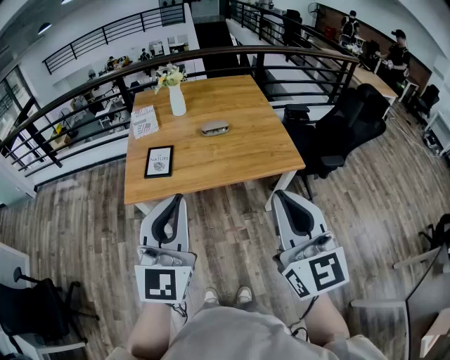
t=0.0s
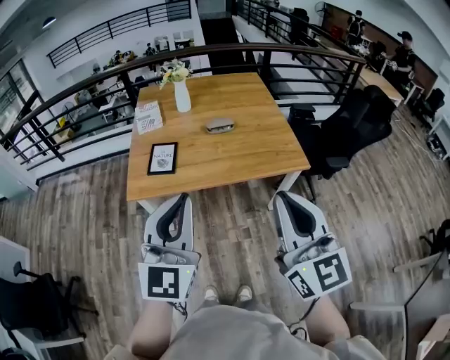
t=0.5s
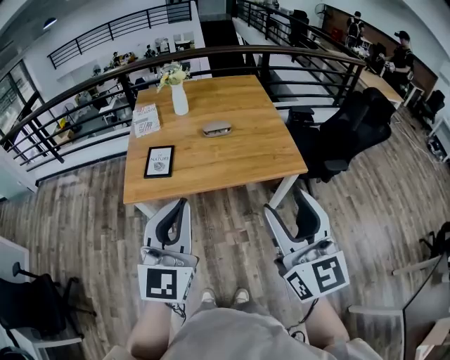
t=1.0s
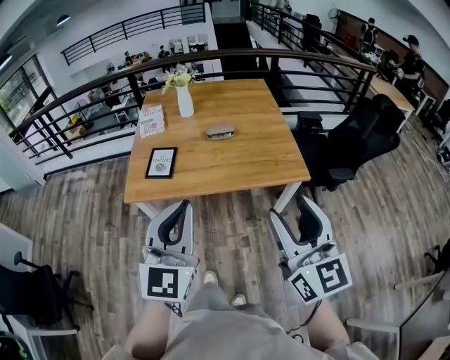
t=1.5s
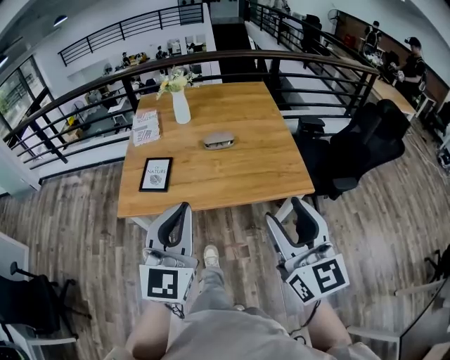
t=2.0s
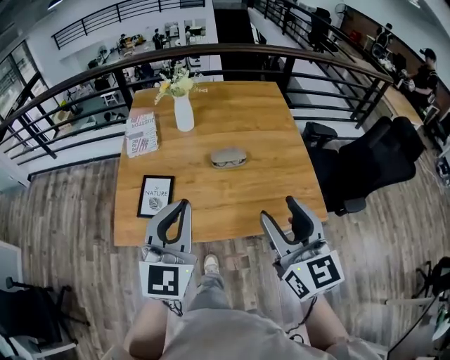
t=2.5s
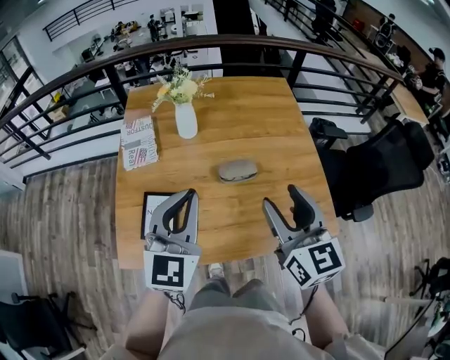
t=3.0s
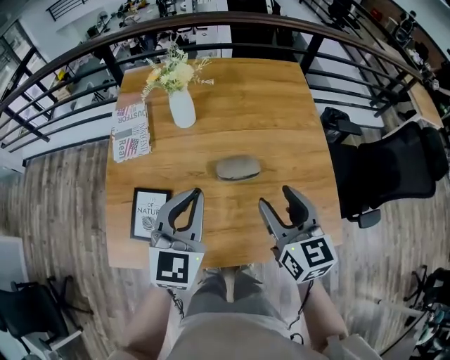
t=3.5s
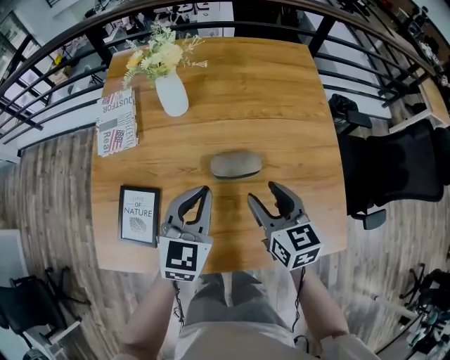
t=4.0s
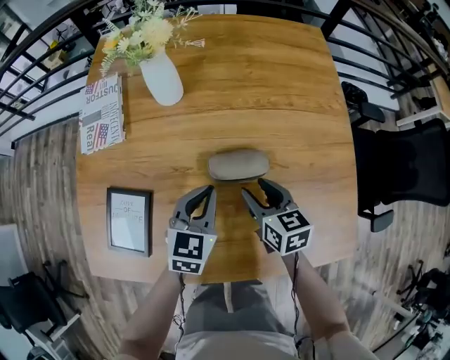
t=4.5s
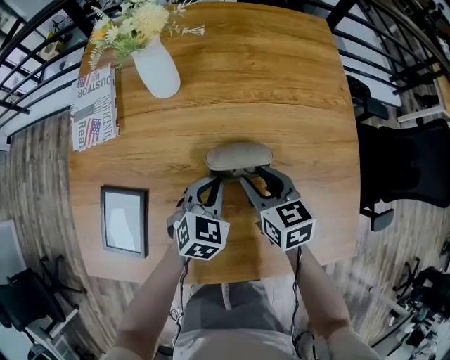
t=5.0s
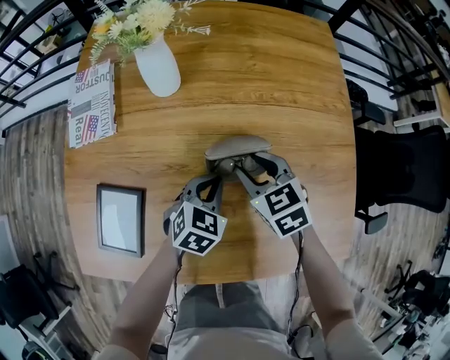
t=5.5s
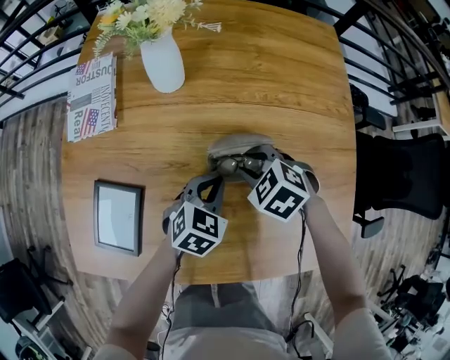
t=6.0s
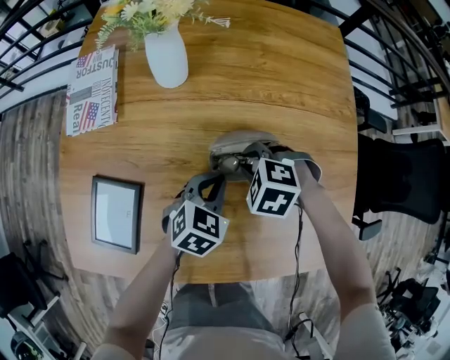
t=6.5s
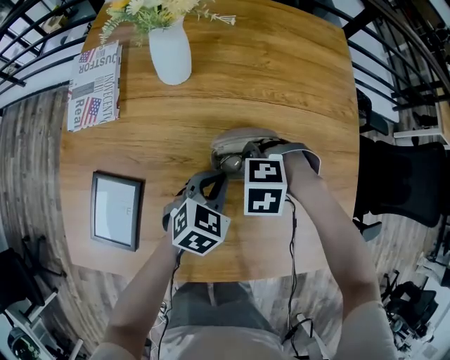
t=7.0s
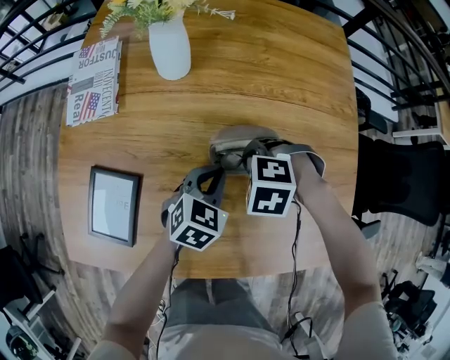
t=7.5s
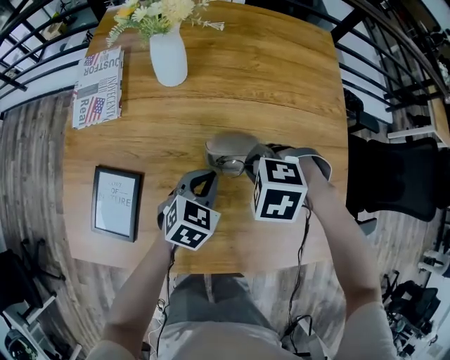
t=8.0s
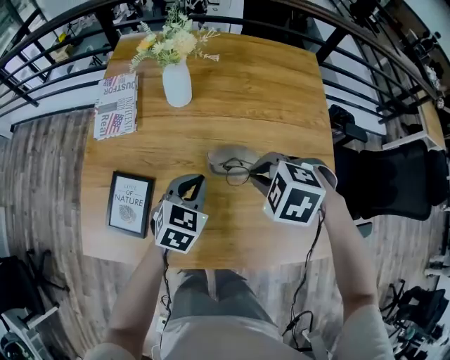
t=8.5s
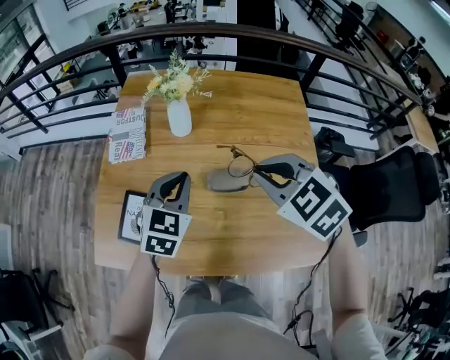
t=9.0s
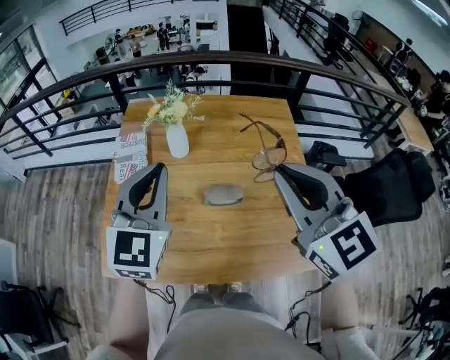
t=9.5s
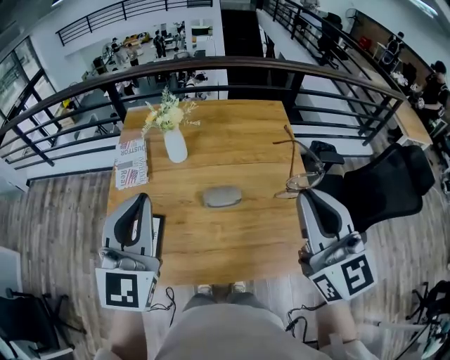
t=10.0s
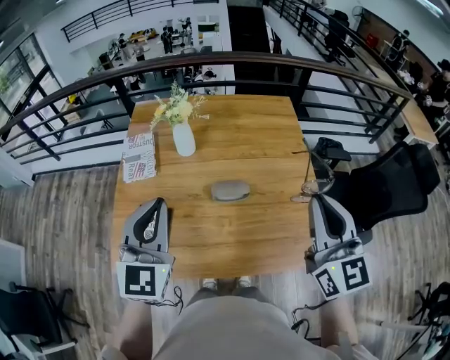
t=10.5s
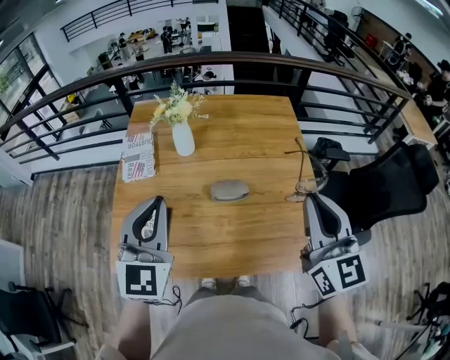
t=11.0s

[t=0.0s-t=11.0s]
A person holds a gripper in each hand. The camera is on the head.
t=0.0s to t=2.0s: The left gripper moves forward, downward and to the right, about 15 cm. The right gripper goes approximately 15 cm forward, to the right and downward, and opens its fingers.
t=2.0s to t=3.5s: The pair of grippers is taken forward, approximately 50 cm. The right gripper changes its angle by roughly 20 degrees.
t=3.5s to t=5.5s: The left gripper goes approximately 30 cm downward, and points its fingers roughly 30 degrees further downward; the right gripper is displaced downward and forward by roughly 30 cm, and turns by some 40 degrees.
t=5.5s to t=7.5s: The right gripper ends up roughly 5 cm from where it was, rotates around the line of its fingers by roughly 50 degrees, counterclockwise from behind, and closes up.
t=7.5s to t=9.0s: The grippers both shift upward by about 30 cm. The right gripper angles its fingers upward, by approximately 40 degrees; the left gripper changes its angle by approximately 20 degrees.
t=9.0s to t=11.0s: The right gripper shifts roughly 20 cm upward, backward and to the right, and tilts its fingers roughly 40 degrees upward; the left gripper travels upward and backward by approximately 20 cm, and swivels roughly 20 degrees.

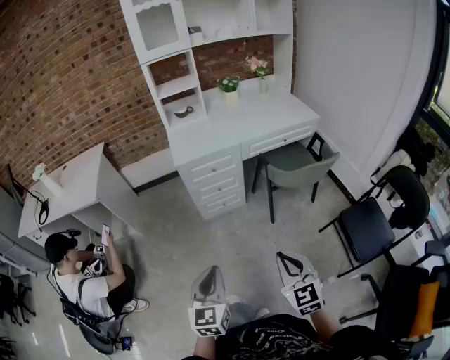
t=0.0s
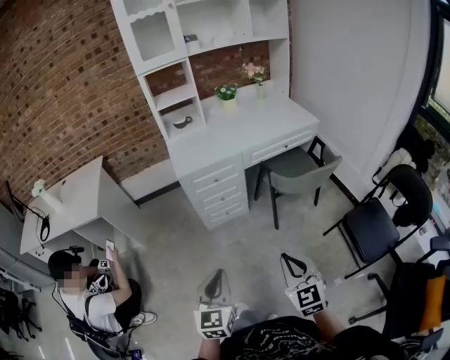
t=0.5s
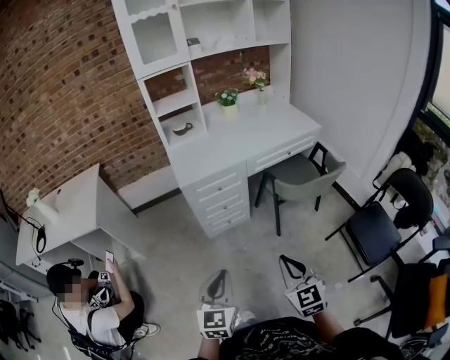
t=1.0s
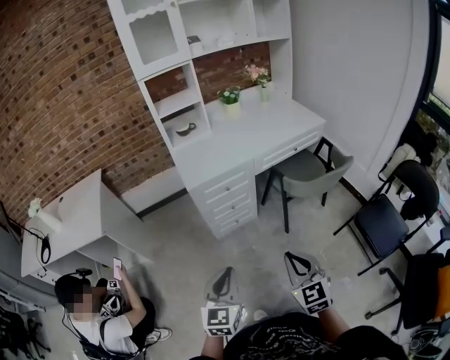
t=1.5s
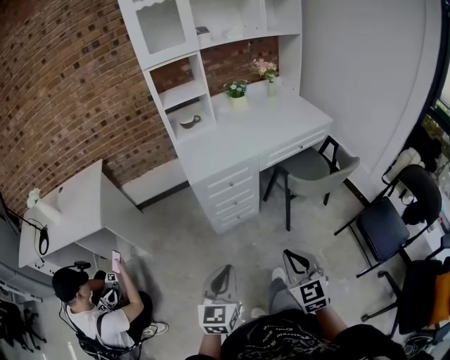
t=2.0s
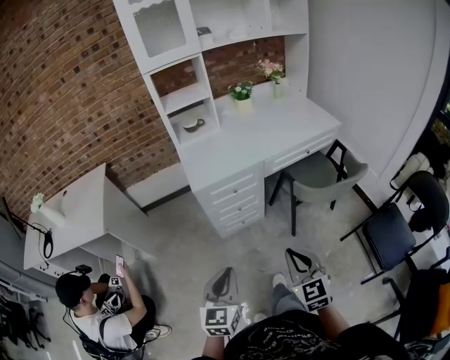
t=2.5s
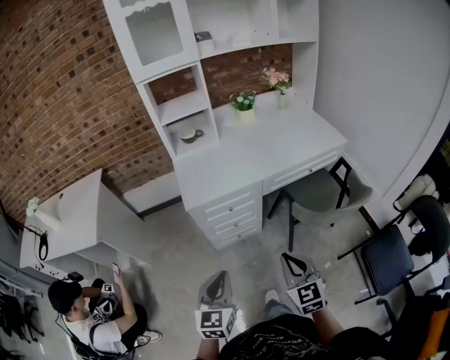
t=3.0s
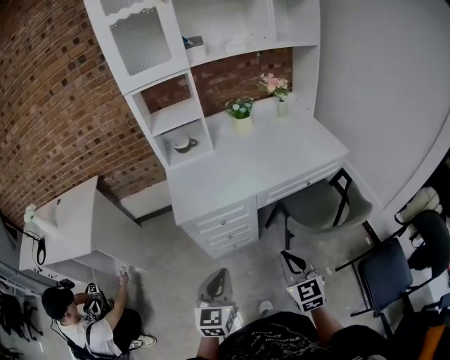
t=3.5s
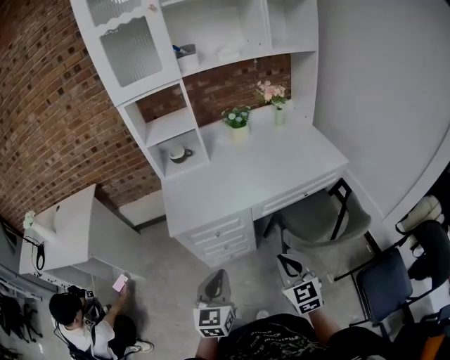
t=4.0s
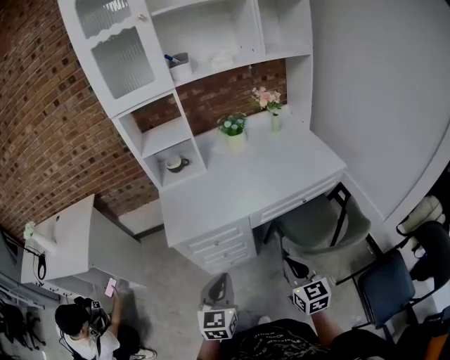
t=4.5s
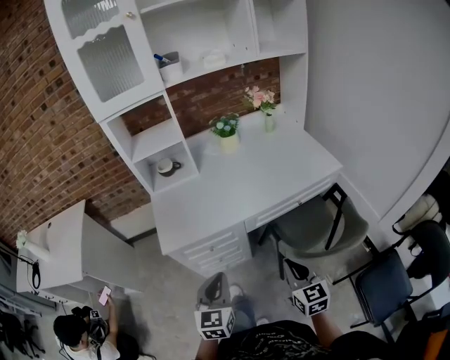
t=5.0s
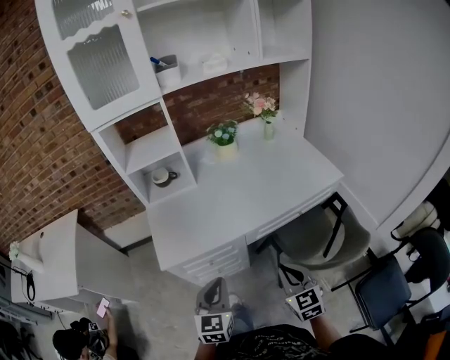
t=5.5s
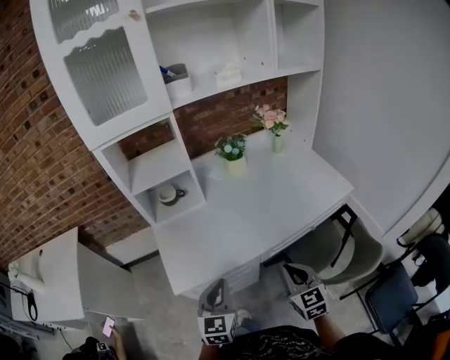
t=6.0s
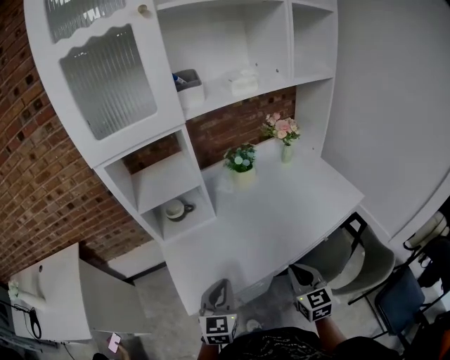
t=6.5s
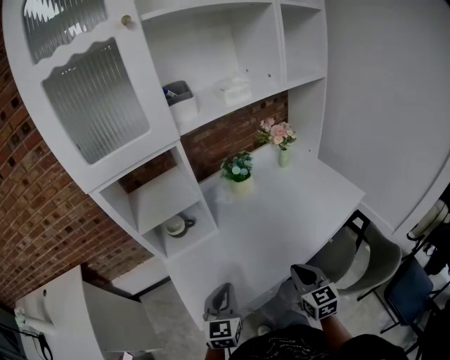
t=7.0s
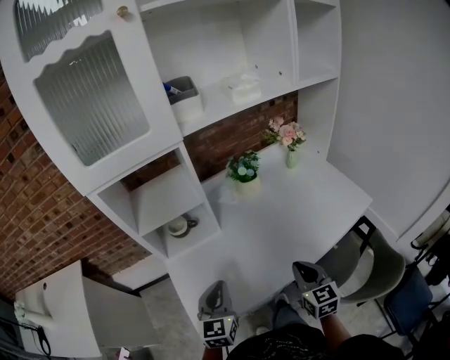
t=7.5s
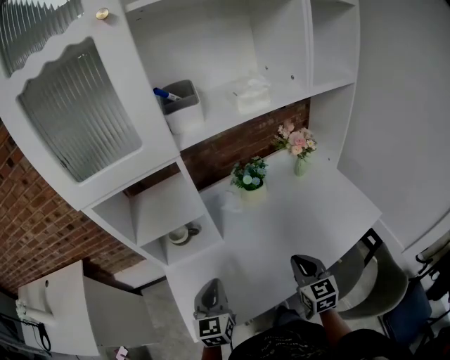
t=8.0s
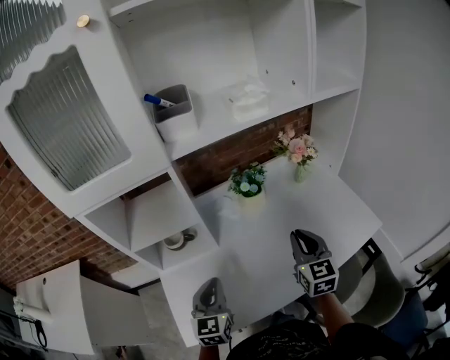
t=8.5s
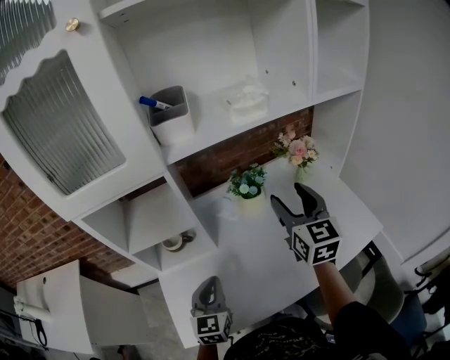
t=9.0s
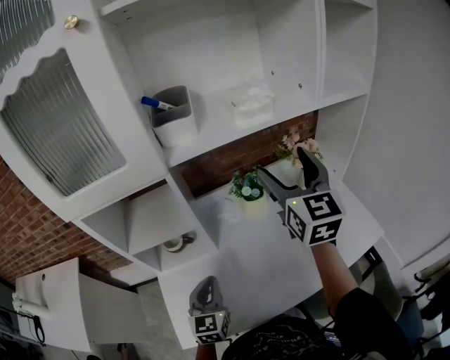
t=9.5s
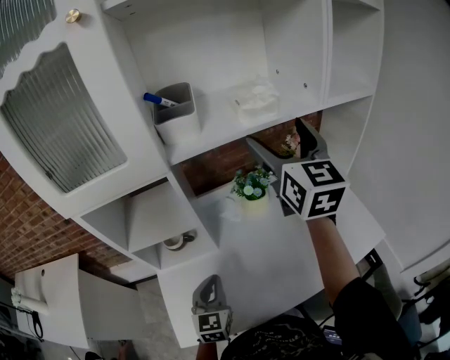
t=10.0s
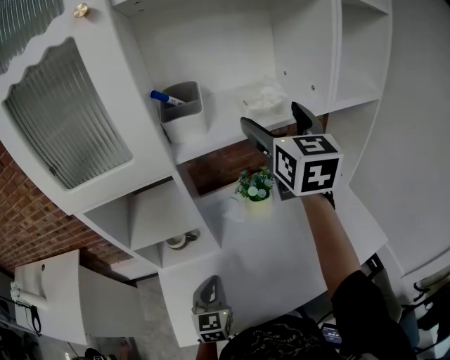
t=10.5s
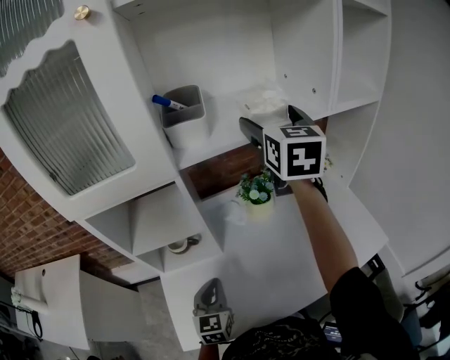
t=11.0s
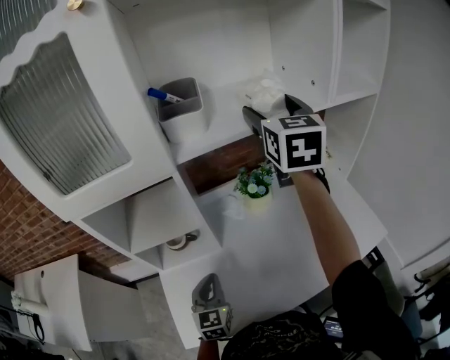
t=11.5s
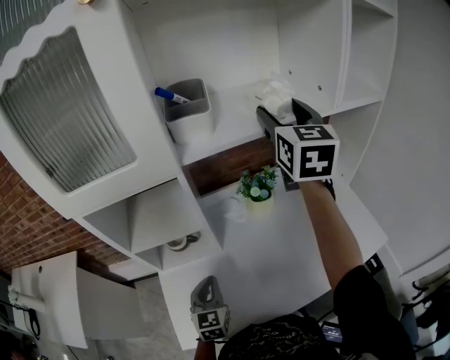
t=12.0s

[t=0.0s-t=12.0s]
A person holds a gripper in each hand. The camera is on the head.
t=0.0s to t=2.0s: Both grippers move forward and to the left, roughly 15 cm.
t=2.0s to t=4.0s: Both grippers move forward and to the right, some 30 cm.
t=4.0s to t=6.0s: The grippers both shift forward by roughly 20 cm.
t=6.0s to t=8.0s: Both grippers move forward, approximately 20 cm.
t=8.0s to t=10.0s: The left gripper travels forward by roughly 5 cm. The right gripper moves upward and forward, roughly 40 cm, changes its angle by some 30 degrees, and opens.
t=10.0s to t=12.0s: The right gripper shifts roughly 5 cm forward, while the left gripper moves about 5 cm.

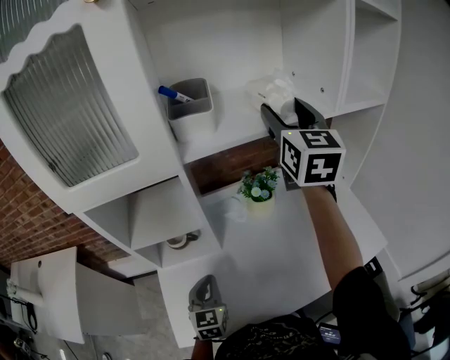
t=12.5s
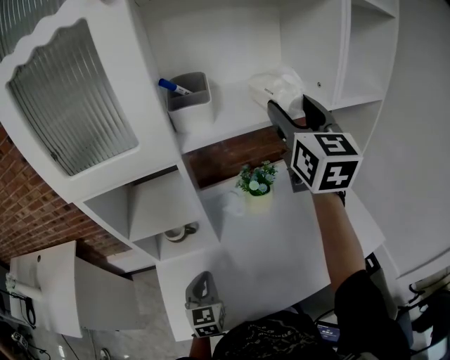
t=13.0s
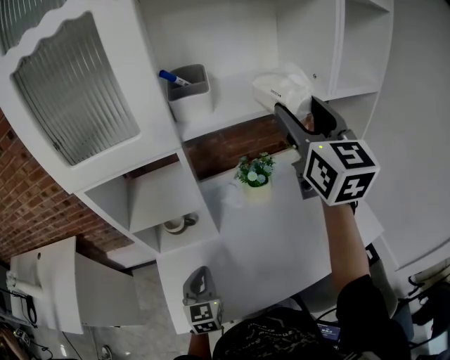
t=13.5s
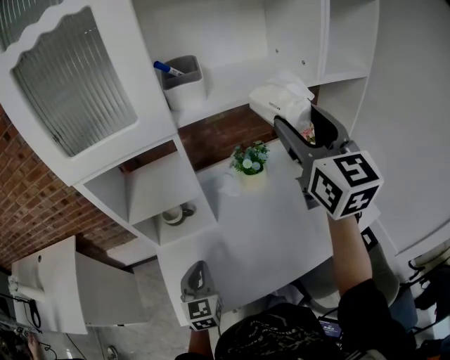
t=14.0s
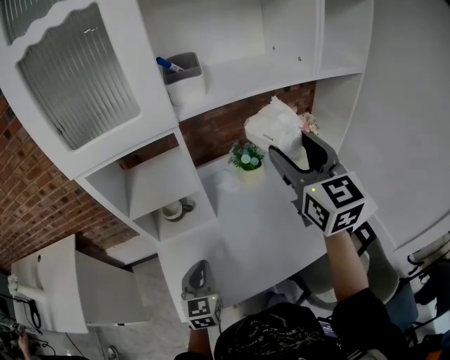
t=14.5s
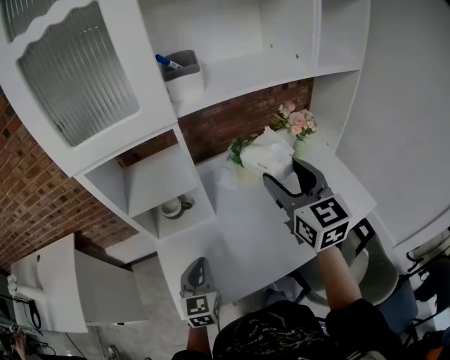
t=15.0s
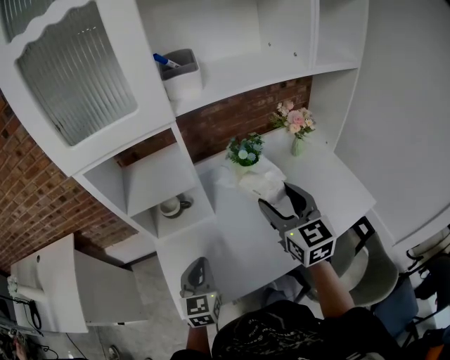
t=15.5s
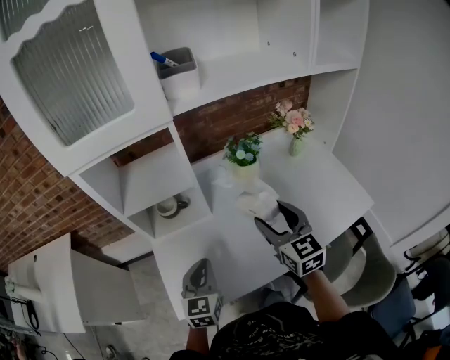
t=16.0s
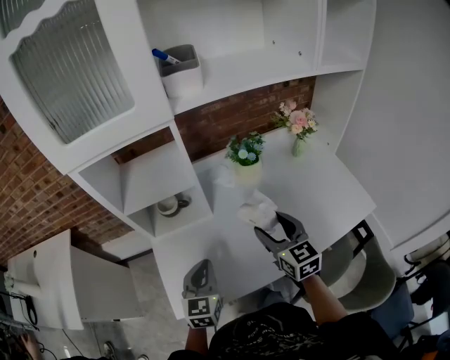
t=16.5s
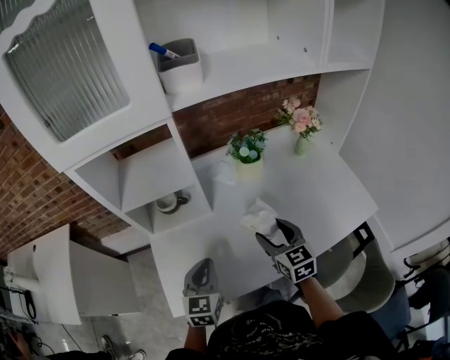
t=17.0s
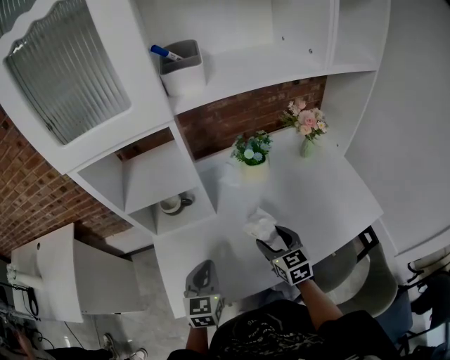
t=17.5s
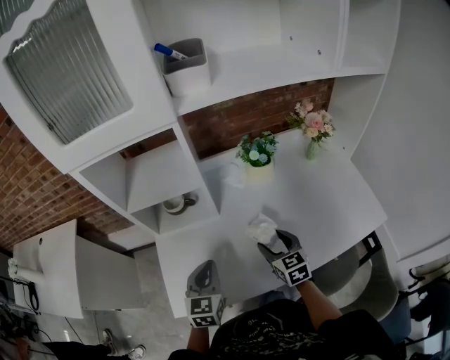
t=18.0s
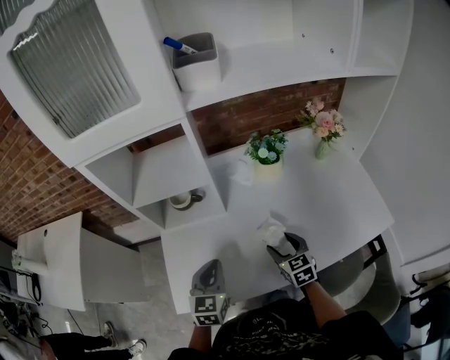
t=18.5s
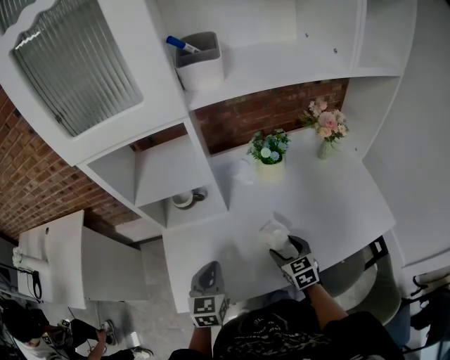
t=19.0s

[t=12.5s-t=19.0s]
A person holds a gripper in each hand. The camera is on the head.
t=12.5s to t=14.5s: The right gripper is displaced backward and downward by about 20 cm. The left gripper travels backward by roughly 10 cm.
t=14.5s to t=17.0s: The right gripper shifts approximately 30 cm downward, and turns by about 30 degrees.
t=17.0s to t=19.0s: The right gripper goes about 10 cm downward.
